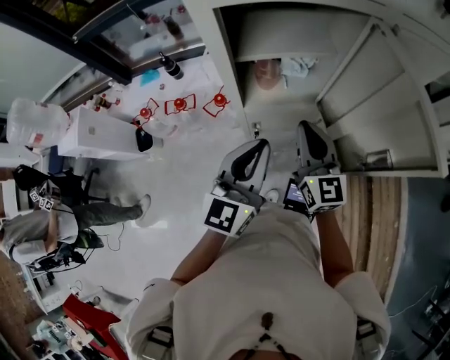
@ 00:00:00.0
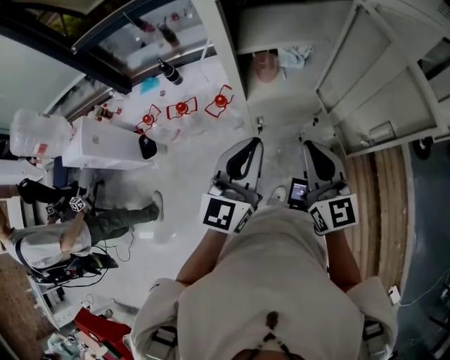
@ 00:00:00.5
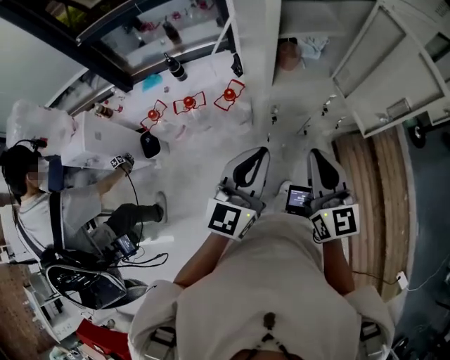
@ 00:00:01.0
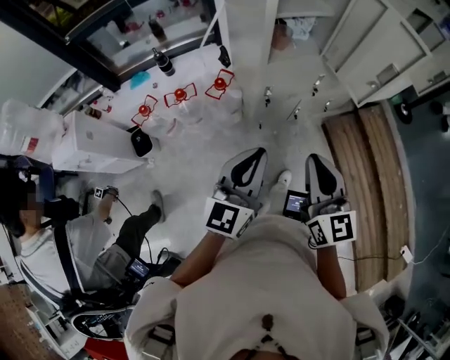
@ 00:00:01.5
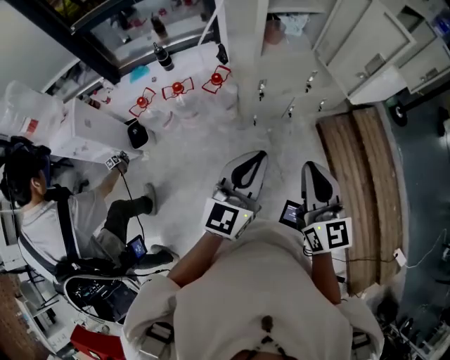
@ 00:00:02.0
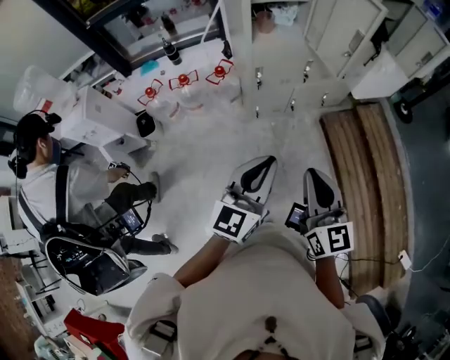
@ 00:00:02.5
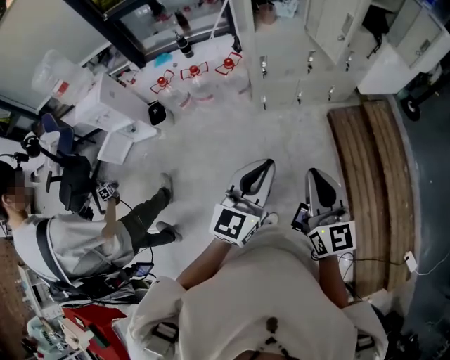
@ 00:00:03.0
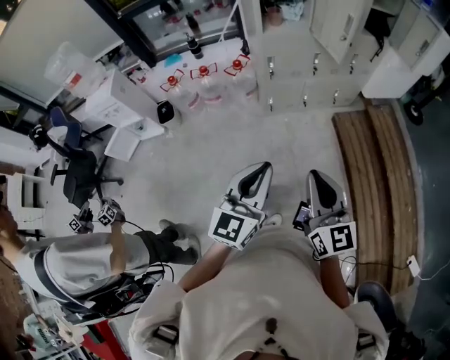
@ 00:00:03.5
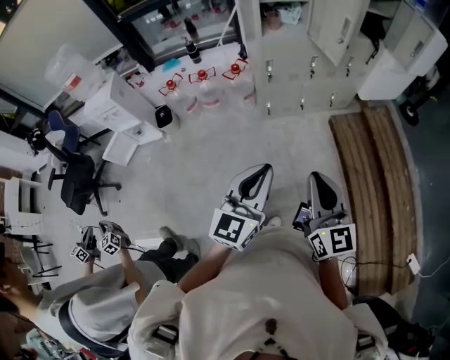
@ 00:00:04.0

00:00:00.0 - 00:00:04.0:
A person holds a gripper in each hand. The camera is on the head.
00:00:00.0 - 00:00:02.0: The left gripper is displaced backward and to the left by about 30 cm, while the right gripper is displaced backward by approximately 40 cm.
00:00:02.0 - 00:00:04.0: The two grippers go roughly 25 cm backward.

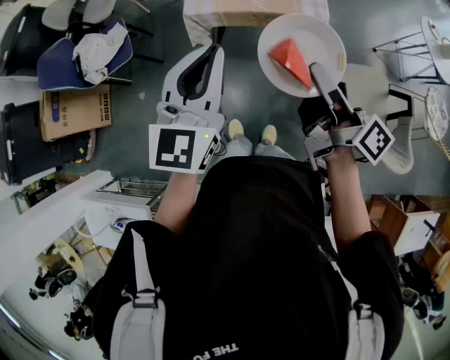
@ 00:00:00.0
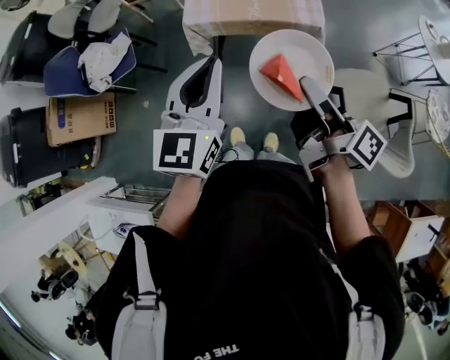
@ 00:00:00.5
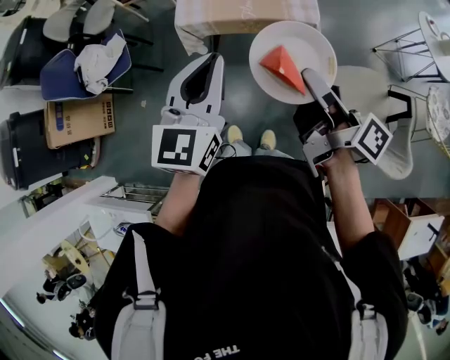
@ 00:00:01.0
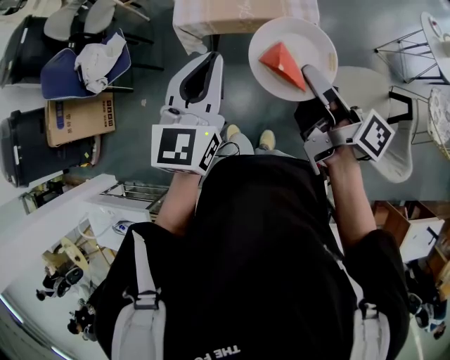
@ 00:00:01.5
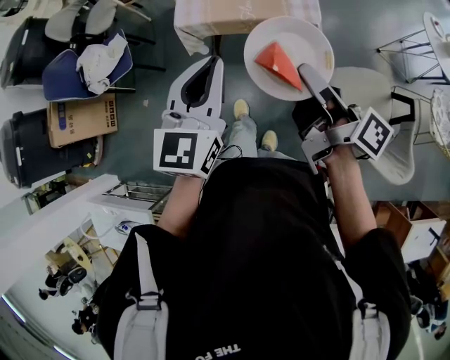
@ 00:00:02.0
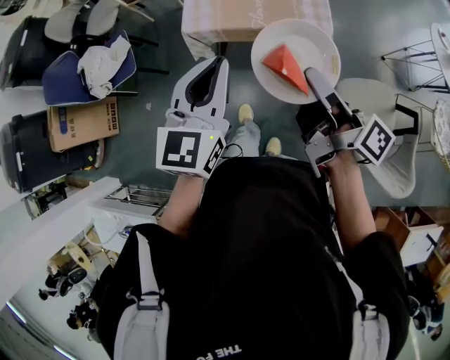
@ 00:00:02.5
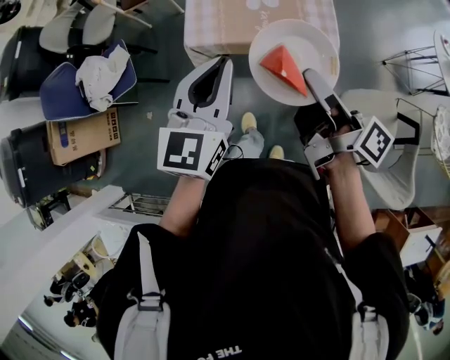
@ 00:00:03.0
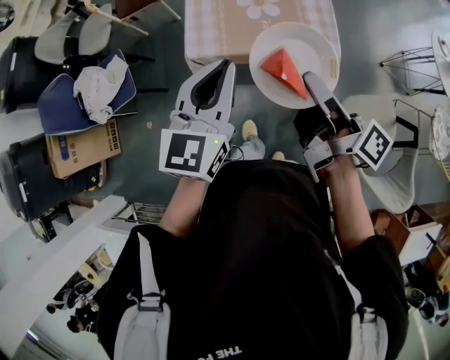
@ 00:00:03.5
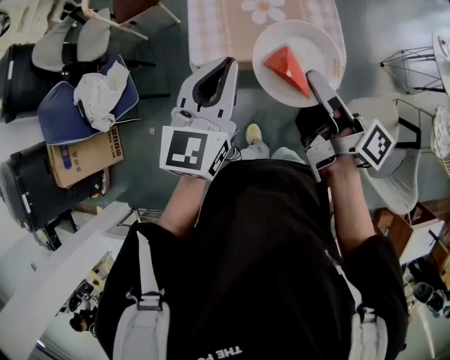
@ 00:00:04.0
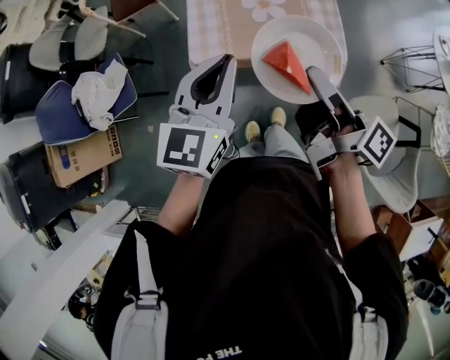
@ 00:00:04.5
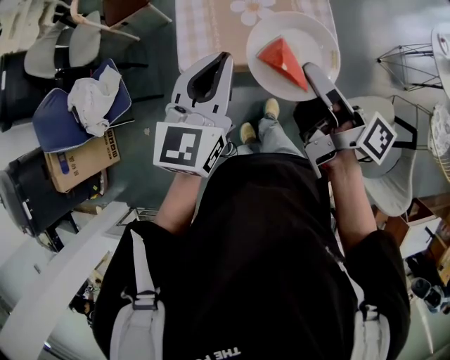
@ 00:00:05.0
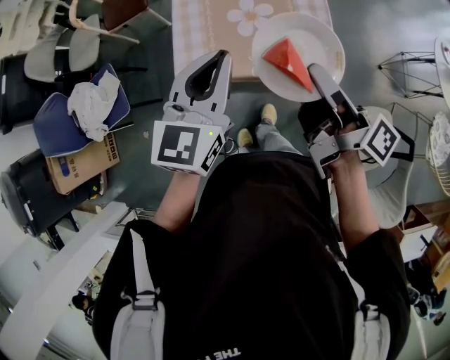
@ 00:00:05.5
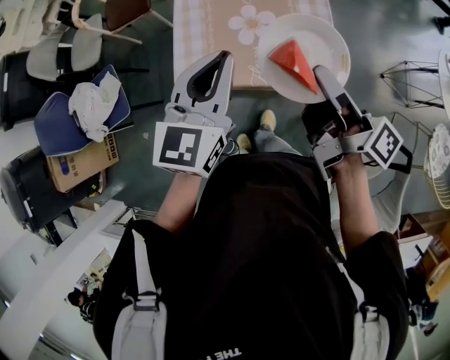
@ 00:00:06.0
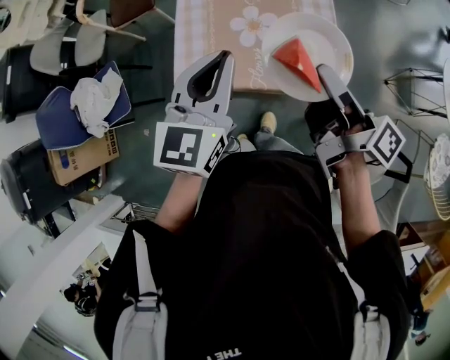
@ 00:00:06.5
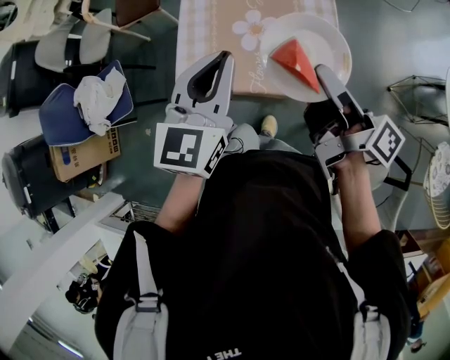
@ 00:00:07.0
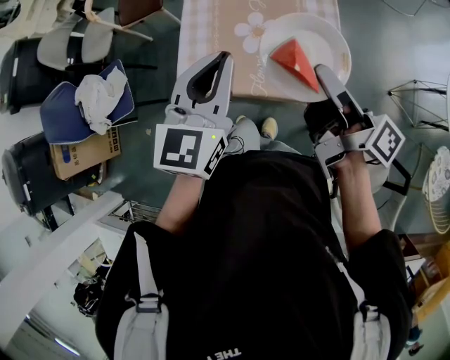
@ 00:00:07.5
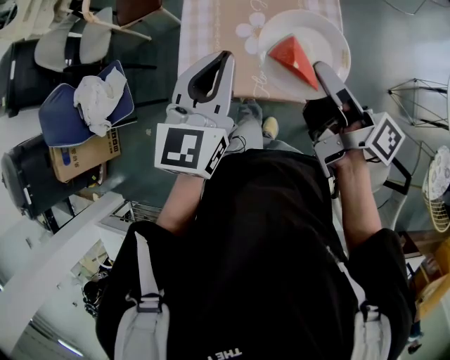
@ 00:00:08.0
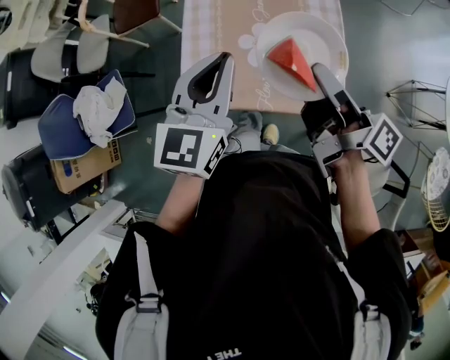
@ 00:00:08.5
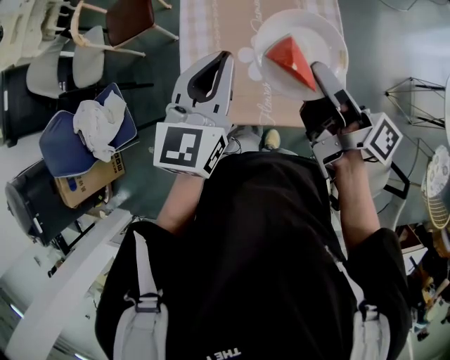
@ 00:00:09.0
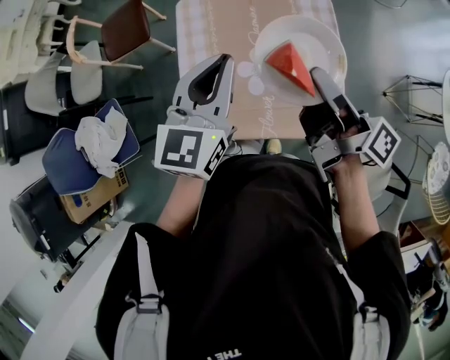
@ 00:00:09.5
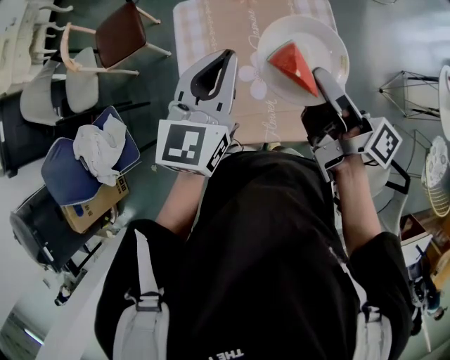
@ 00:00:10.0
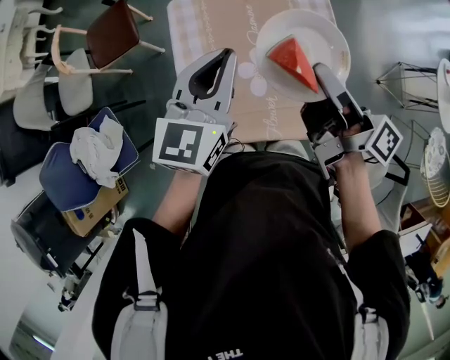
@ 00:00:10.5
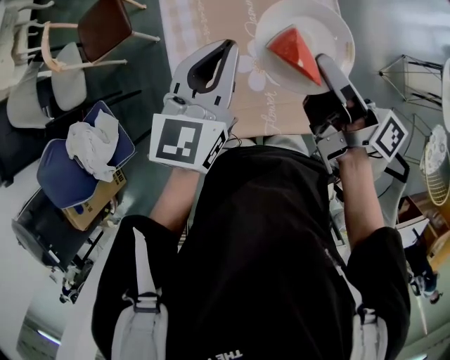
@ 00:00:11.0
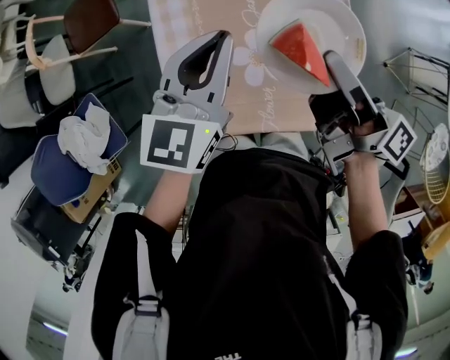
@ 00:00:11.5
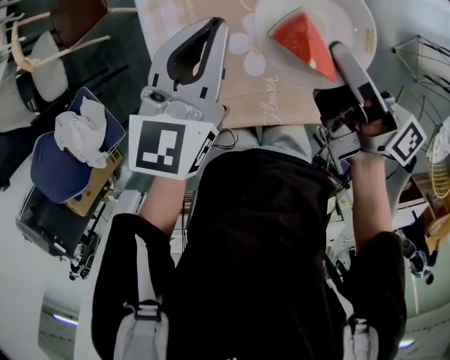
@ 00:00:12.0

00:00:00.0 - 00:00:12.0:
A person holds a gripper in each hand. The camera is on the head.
00:00:00.0 - 00:00:02.0: The left gripper moves about 10 cm.
00:00:02.0 - 00:00:04.0: The left gripper shifts by some 20 cm.
00:00:04.0 - 00:00:06.0: The left gripper ends up some 15 cm from where it was.
00:00:08.0 - 00:00:10.0: The left gripper shifts by approximately 20 cm.
00:00:10.0 - 00:00:12.0: The left gripper shifts roughly 10 cm downward.

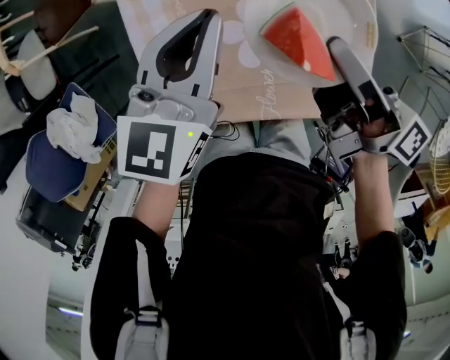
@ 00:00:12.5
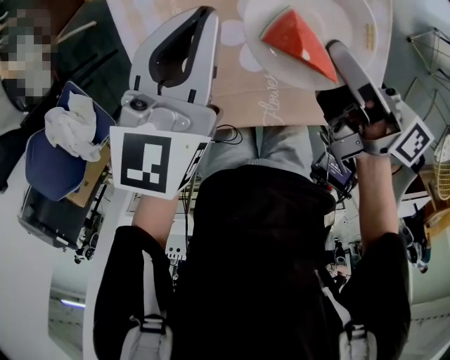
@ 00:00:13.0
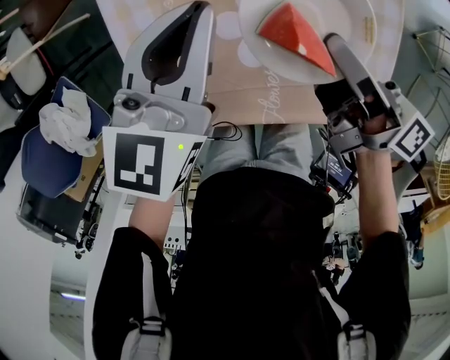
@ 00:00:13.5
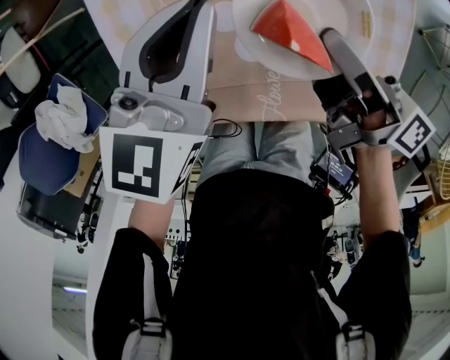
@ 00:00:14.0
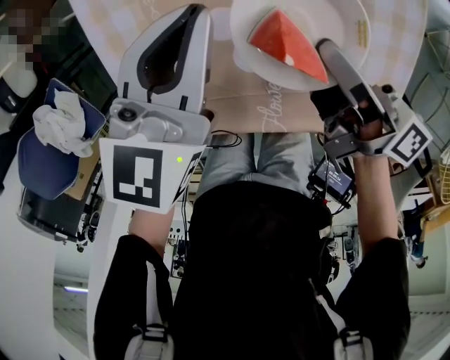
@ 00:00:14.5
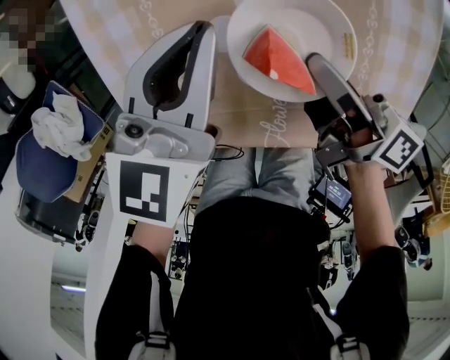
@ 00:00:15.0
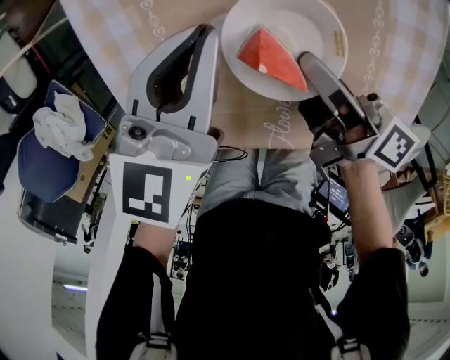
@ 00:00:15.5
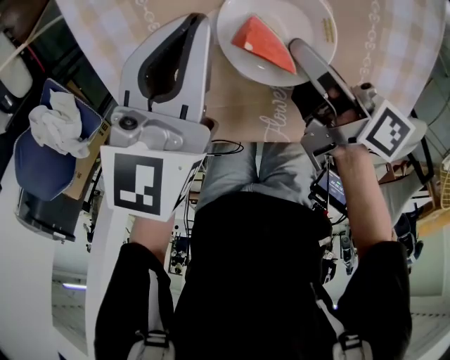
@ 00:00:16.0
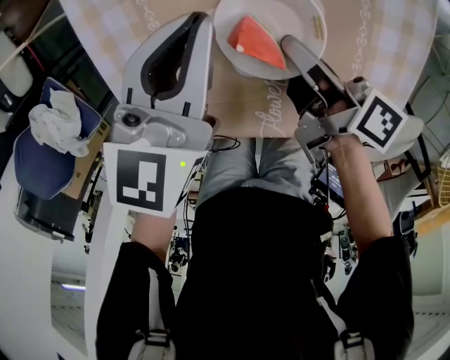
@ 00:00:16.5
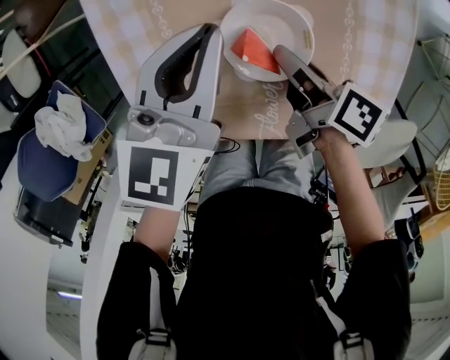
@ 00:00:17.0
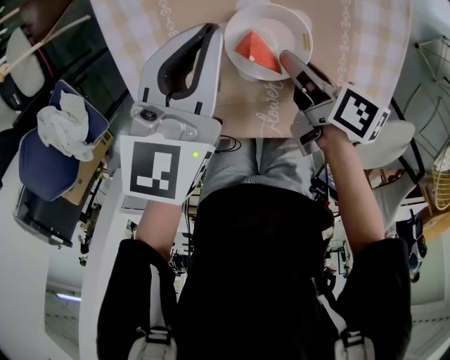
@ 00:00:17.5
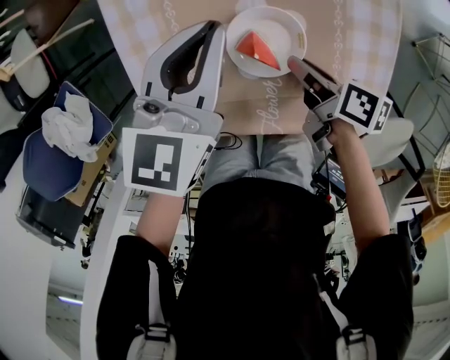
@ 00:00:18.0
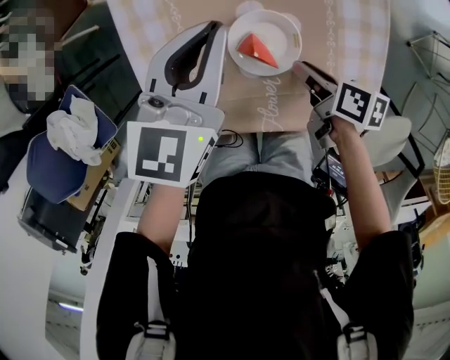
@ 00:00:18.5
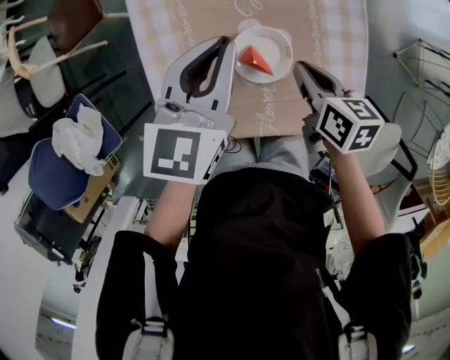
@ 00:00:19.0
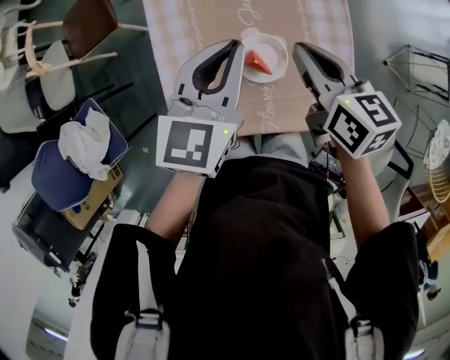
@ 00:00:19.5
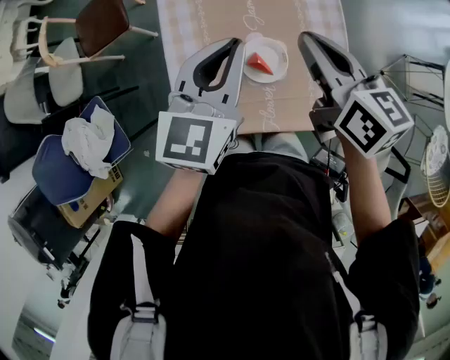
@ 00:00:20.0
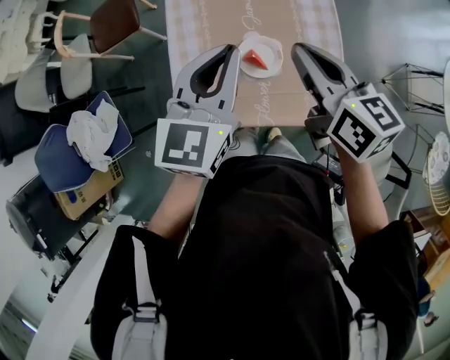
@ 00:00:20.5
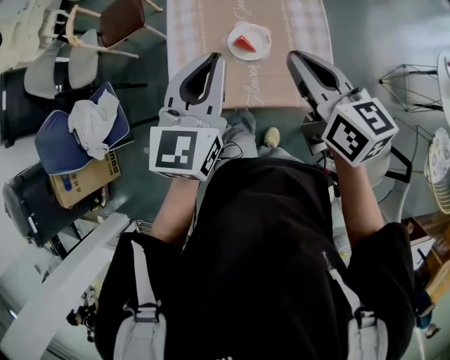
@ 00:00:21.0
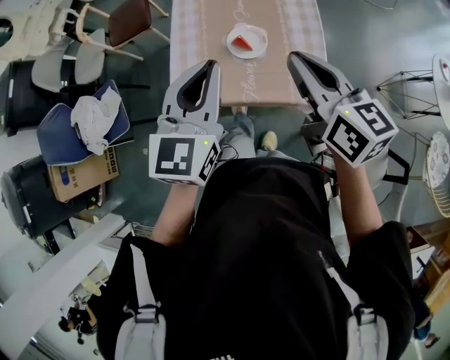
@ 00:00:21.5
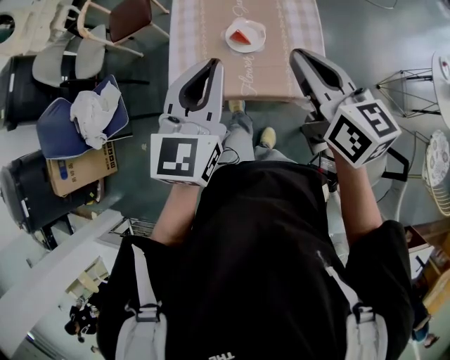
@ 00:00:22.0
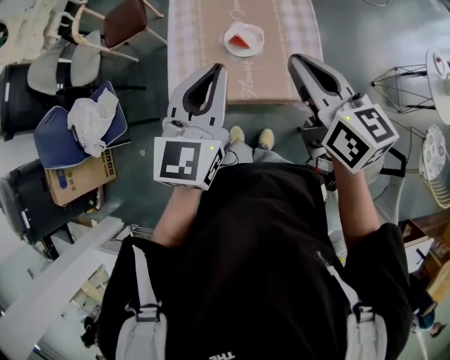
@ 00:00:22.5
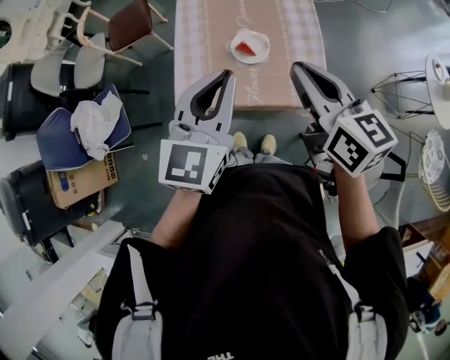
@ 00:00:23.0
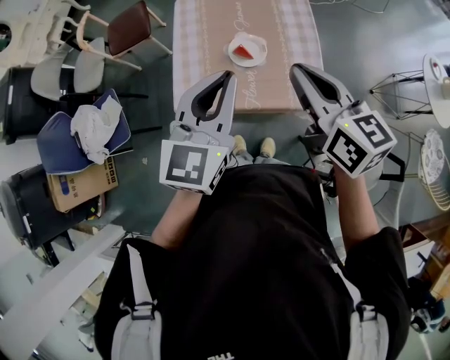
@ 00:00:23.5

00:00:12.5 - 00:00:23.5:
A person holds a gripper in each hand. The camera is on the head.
00:00:12.5 - 00:00:14.5: The left gripper travels downward by roughly 10 cm.
00:00:16.0 - 00:00:18.0: The left gripper travels upward by approximately 5 cm.
00:00:18.0 - 00:00:20.0: The left gripper is displaced upward by about 20 cm.
00:00:20.0 - 00:00:21.5: The left gripper moves roughly 25 cm.
